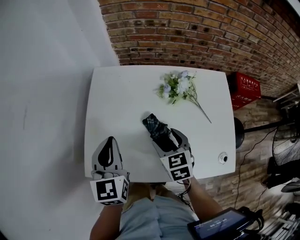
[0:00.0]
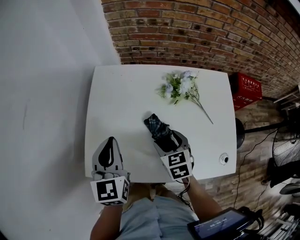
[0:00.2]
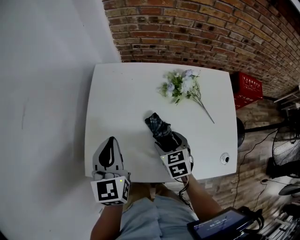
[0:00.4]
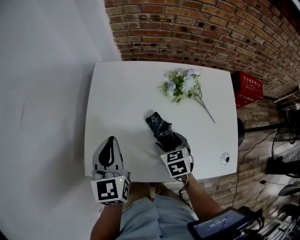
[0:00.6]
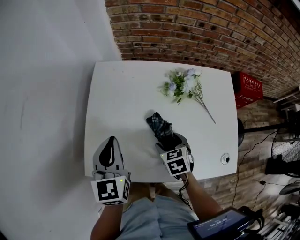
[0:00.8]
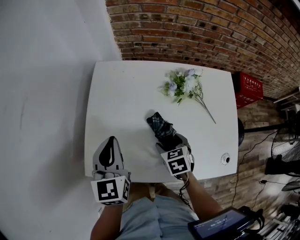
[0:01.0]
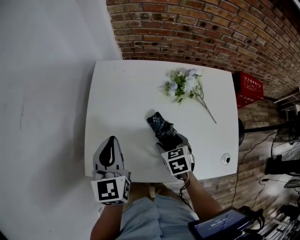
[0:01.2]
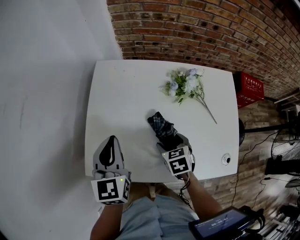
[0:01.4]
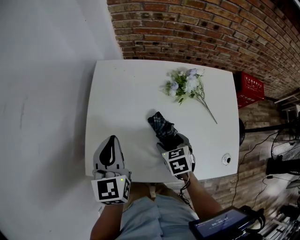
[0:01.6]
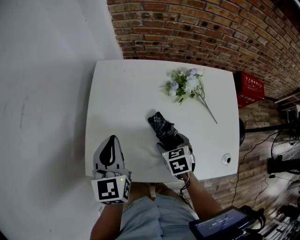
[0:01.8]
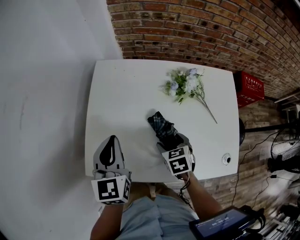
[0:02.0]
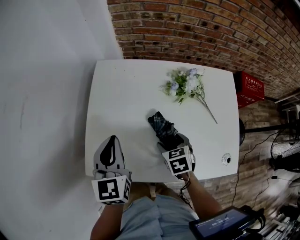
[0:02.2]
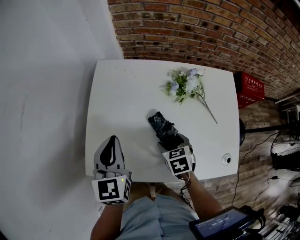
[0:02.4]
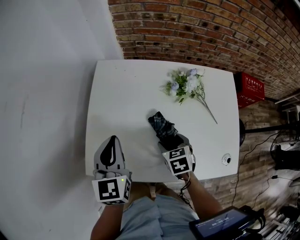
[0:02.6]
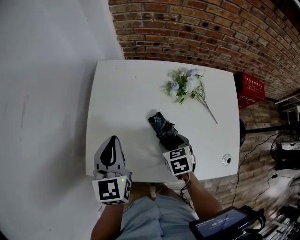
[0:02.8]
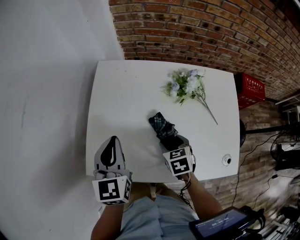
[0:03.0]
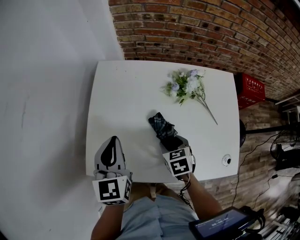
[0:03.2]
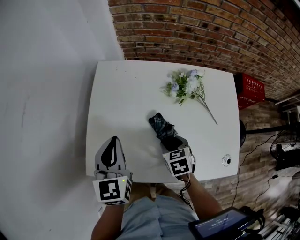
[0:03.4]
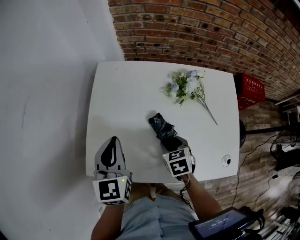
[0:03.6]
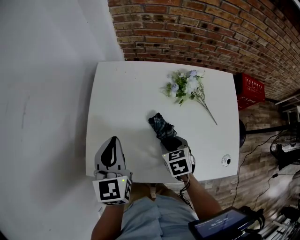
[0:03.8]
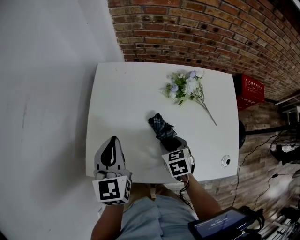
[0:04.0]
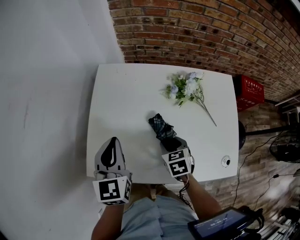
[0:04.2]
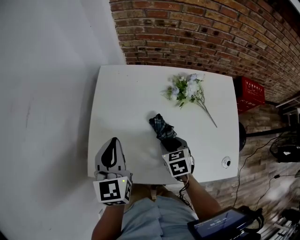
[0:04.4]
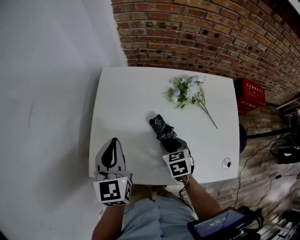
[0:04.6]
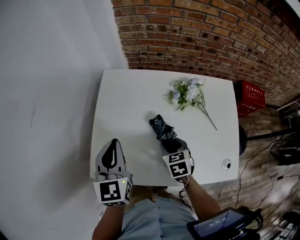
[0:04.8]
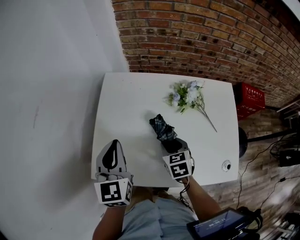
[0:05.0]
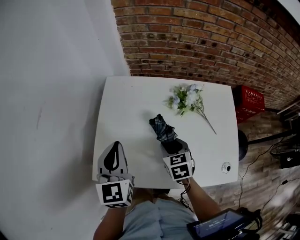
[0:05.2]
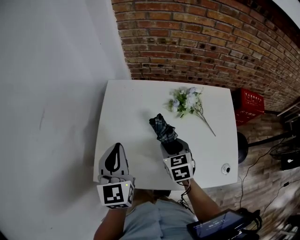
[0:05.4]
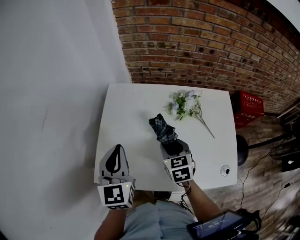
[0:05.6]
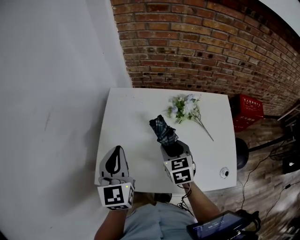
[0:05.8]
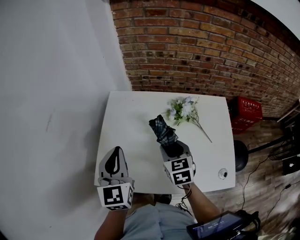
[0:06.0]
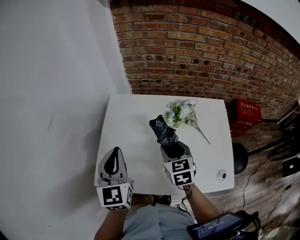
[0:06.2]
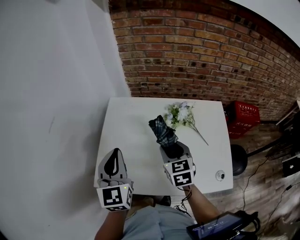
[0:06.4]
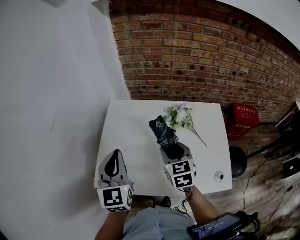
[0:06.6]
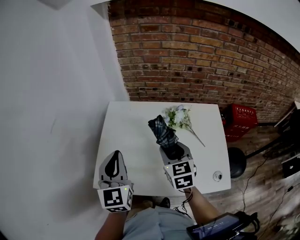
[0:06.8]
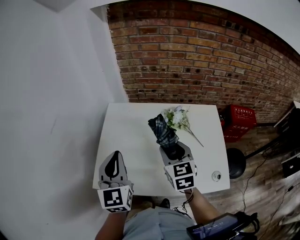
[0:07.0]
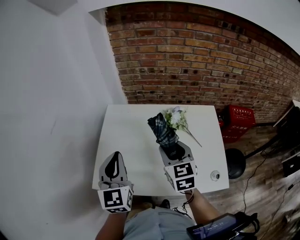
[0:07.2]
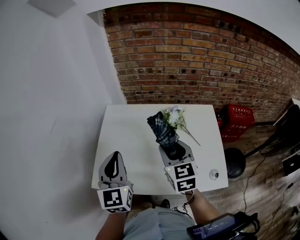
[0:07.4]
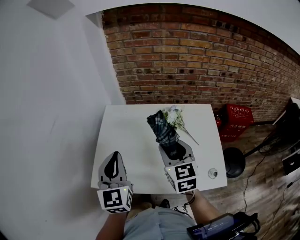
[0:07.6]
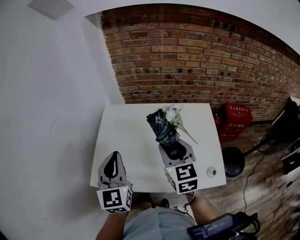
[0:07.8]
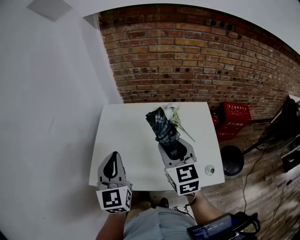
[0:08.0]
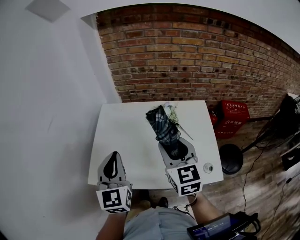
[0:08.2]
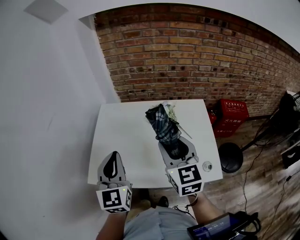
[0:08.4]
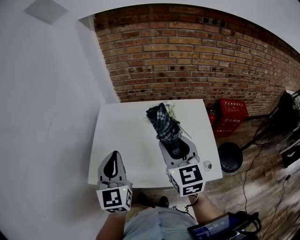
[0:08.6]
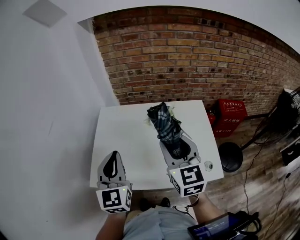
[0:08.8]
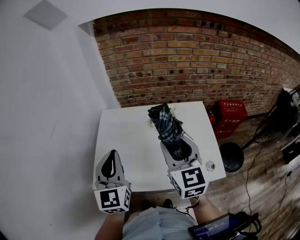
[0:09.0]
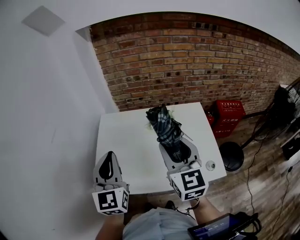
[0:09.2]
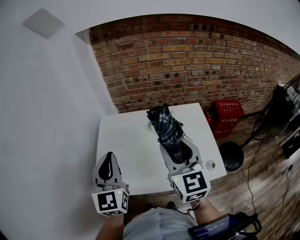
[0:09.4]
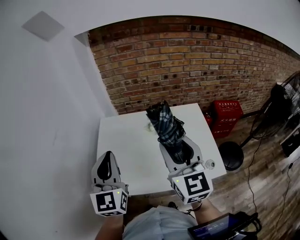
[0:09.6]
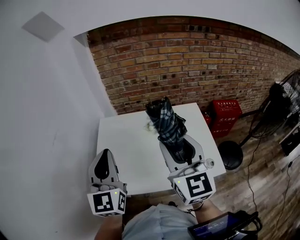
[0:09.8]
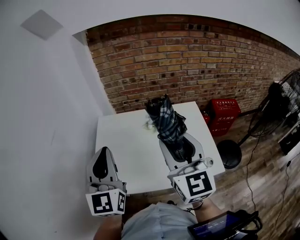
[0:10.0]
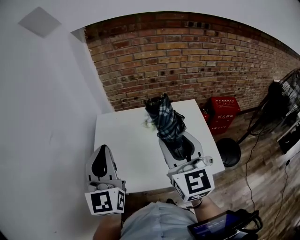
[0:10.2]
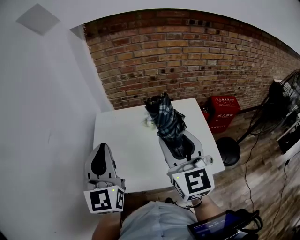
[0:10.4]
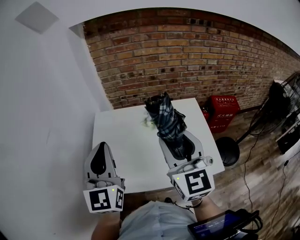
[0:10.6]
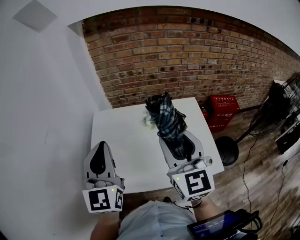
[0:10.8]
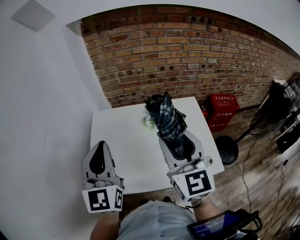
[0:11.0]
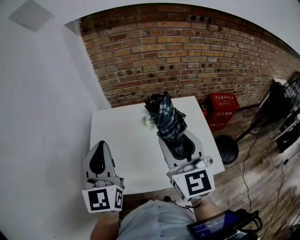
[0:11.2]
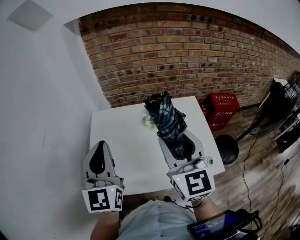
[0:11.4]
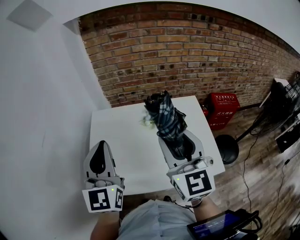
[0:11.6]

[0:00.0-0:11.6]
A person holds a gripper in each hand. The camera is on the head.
0:00.0 to 0:01.4: The right gripper is displaced downward by roughly 10 cm.
0:01.4 to 0:02.8: Both grippers stay put.
0:02.8 to 0:04.4: The two grippers keep their place.
0:04.4 to 0:05.8: The left gripper moves upward, about 5 cm. Meanwhile the right gripper heads upward, covering roughly 10 cm.
0:05.8 to 0:07.2: The left gripper changes place by some 5 cm; the right gripper travels upward by some 10 cm.
0:07.2 to 0:08.8: The left gripper changes place by some 5 cm. Meanwhile the right gripper moves upward and backward, some 10 cm.
0:08.8 to 0:10.2: Both grippers move upward, roughly 10 cm.
0:10.2 to 0:11.6: The left gripper moves approximately 5 cm.

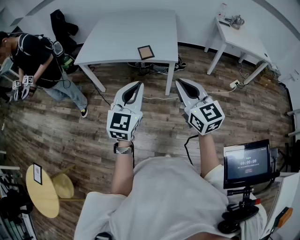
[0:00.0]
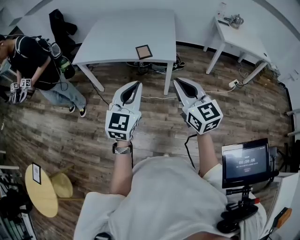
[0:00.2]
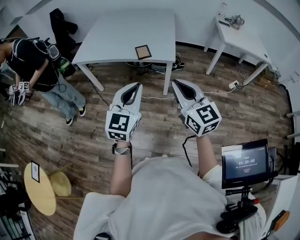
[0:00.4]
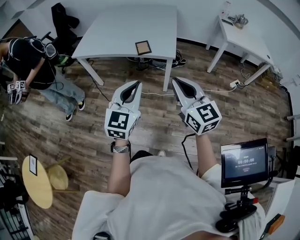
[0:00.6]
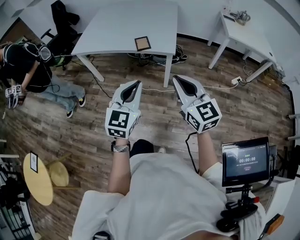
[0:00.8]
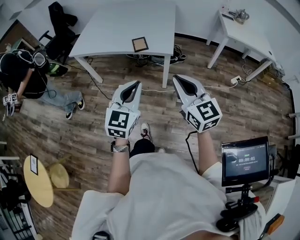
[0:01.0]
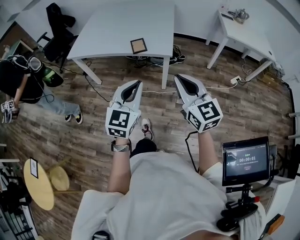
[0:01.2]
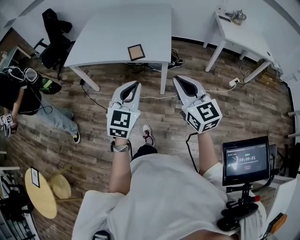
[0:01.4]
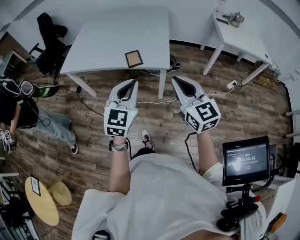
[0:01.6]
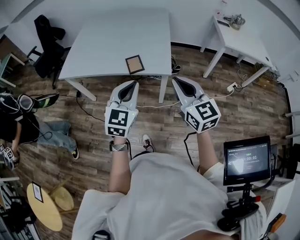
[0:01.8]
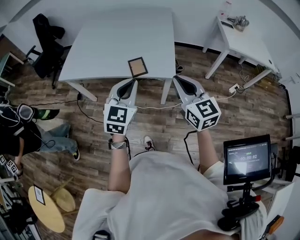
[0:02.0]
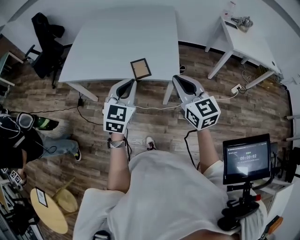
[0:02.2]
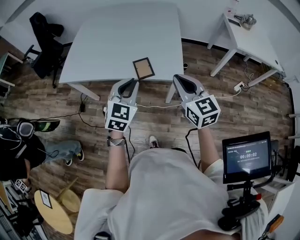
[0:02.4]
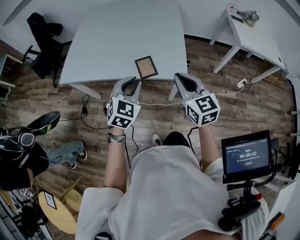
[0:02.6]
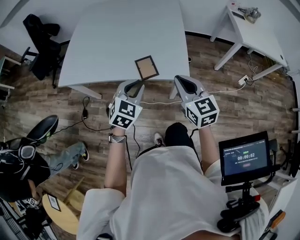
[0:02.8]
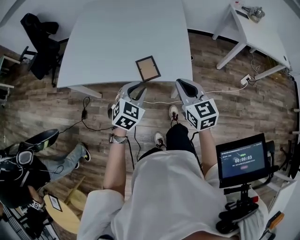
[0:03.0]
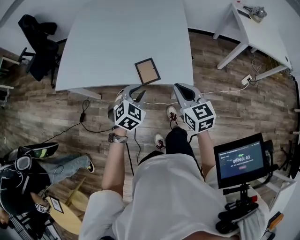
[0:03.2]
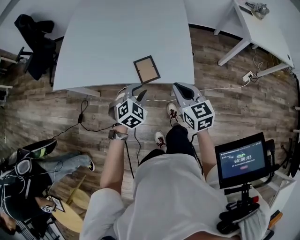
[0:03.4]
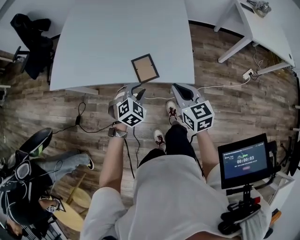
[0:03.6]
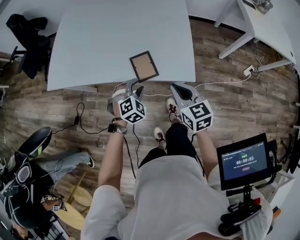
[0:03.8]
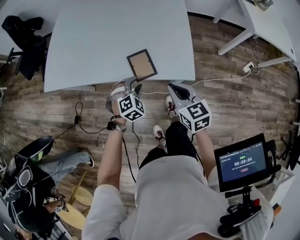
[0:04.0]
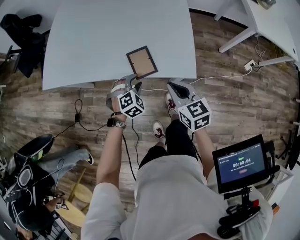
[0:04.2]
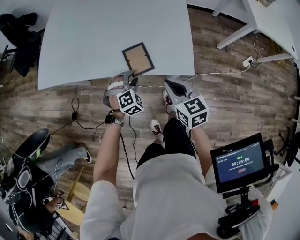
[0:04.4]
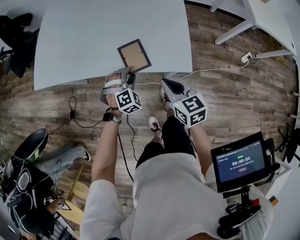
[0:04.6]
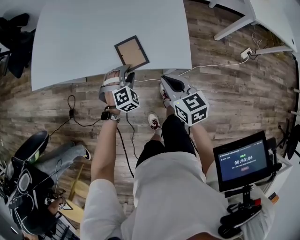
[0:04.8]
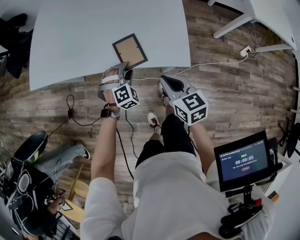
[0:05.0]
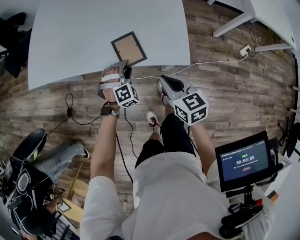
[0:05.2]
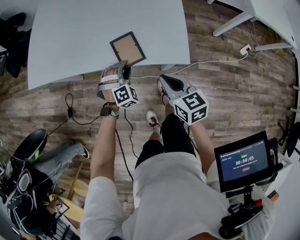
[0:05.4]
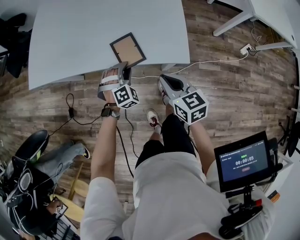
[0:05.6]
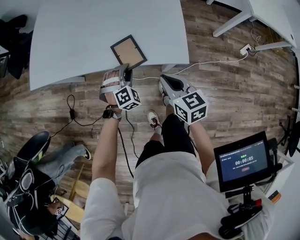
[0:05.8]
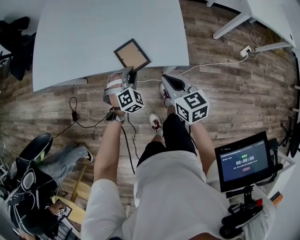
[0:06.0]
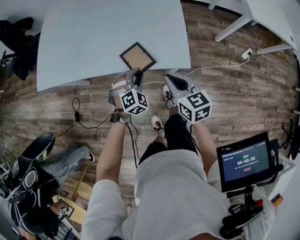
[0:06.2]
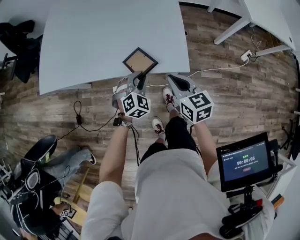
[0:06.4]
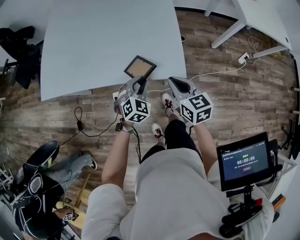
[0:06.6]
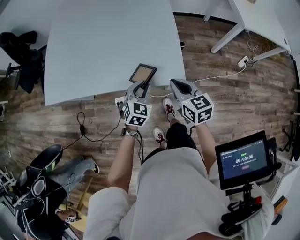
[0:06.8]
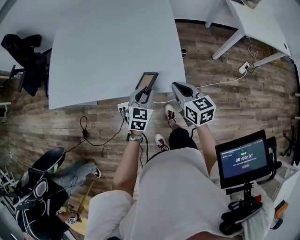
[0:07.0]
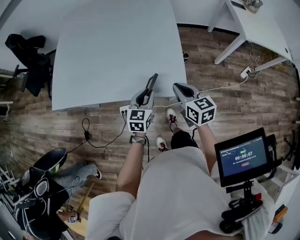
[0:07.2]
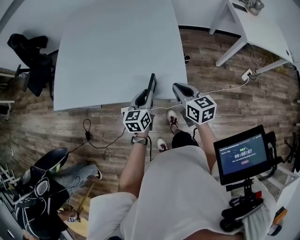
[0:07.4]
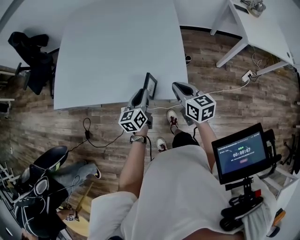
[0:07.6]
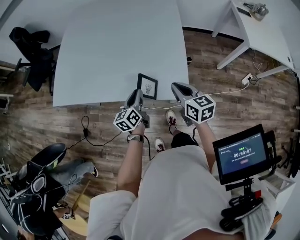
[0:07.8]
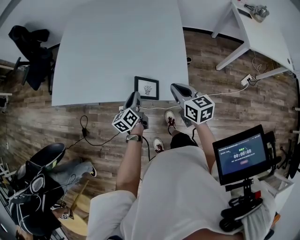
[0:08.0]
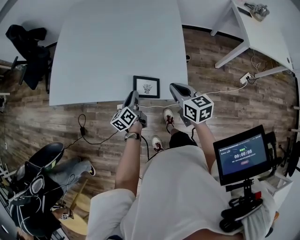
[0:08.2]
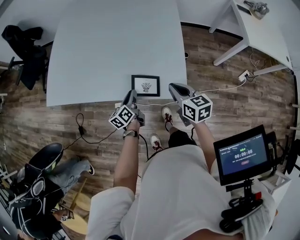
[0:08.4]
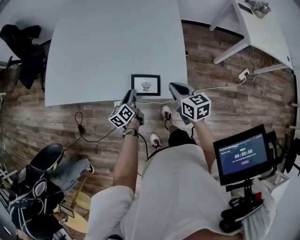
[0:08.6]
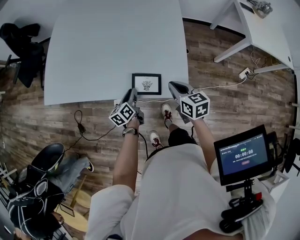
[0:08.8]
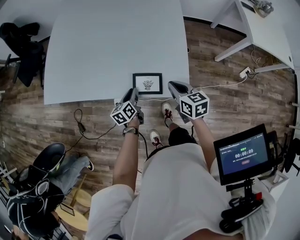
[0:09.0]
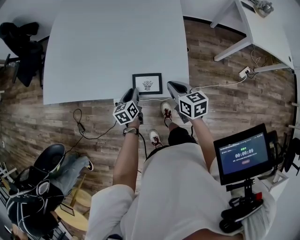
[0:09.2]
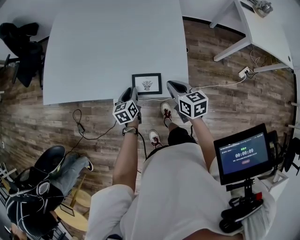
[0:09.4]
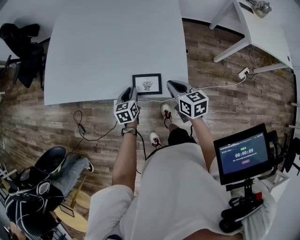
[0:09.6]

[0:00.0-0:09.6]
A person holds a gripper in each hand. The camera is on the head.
0:00.0 to 0:01.6: Both grippers travel together forward and to the right, approximately 15 cm.
0:01.6 to 0:03.2: The grippers both shift forward and downward by approximately 35 cm. The right gripper changes its angle by some 20 degrees. The left gripper points its fingers some 30 degrees further downward.
0:03.2 to 0:04.8: The grippers both shift downward by some 15 cm. The left gripper rotates about 30 degrees, and opens.
0:04.8 to 0:06.4: The left gripper heads upward and to the right, covering roughly 10 cm.
0:06.4 to 0:08.0: The right gripper goes roughly 10 cm forward and upward, while the left gripper shifts approximately 10 cm to the left and forward, and rotates around the line of its fingers by roughly 90 degrees, counterclockwise from behind.
0:08.0 to 0:09.6: The grippers both shift downward by roughly 5 cm. The left gripper swivels some 30 degrees.

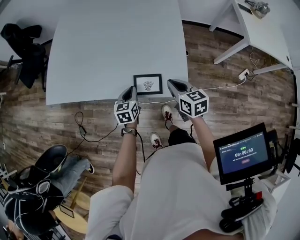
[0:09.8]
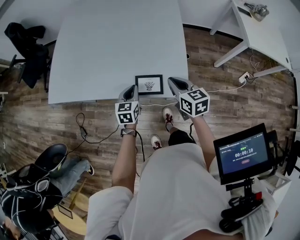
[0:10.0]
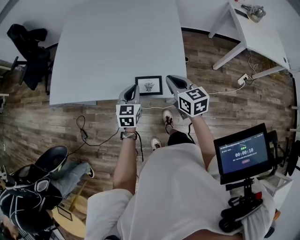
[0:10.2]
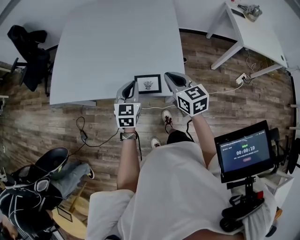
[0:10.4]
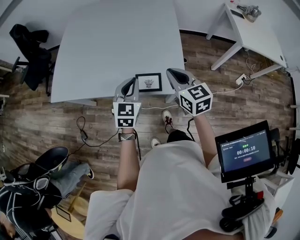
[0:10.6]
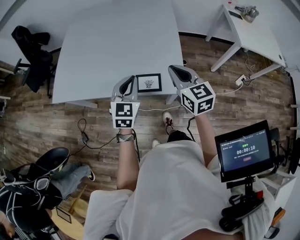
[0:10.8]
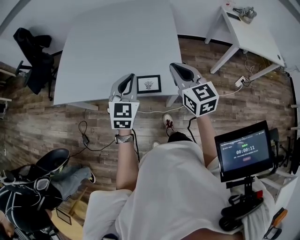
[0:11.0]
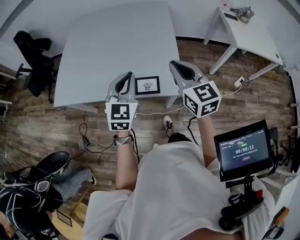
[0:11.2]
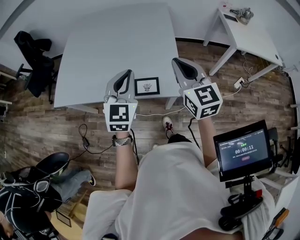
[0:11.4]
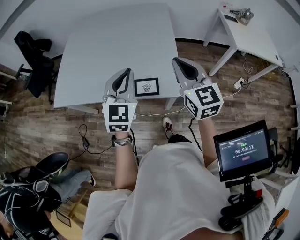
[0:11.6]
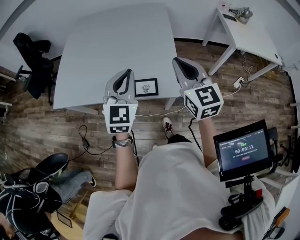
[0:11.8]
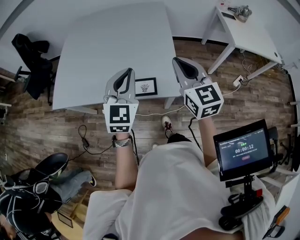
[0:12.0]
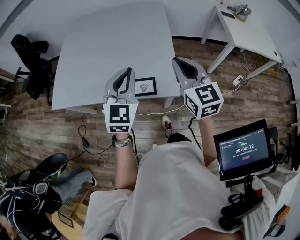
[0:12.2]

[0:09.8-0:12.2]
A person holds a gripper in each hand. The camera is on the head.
0:09.8 to 0:11.0: The grippers both shift upward by some 25 cm. The left gripper changes its angle by about 40 degrees. The right gripper changes its angle by approximately 30 degrees.
0:11.0 to 0:12.2: The left gripper heads upward, covering roughly 5 cm.
